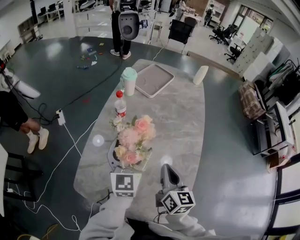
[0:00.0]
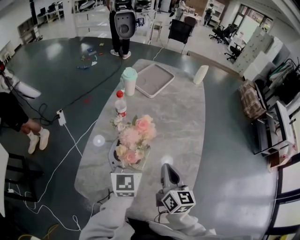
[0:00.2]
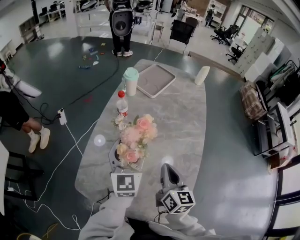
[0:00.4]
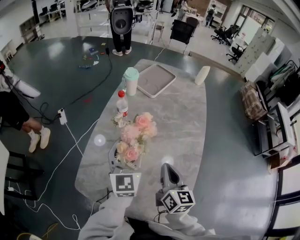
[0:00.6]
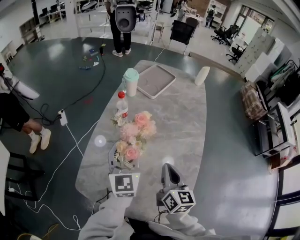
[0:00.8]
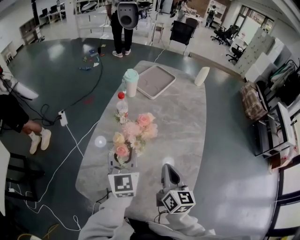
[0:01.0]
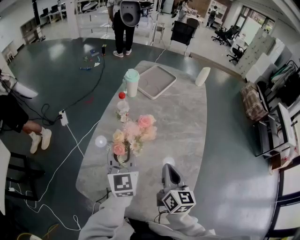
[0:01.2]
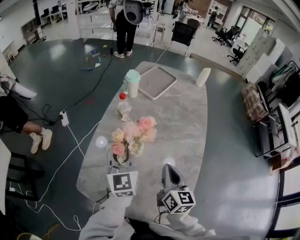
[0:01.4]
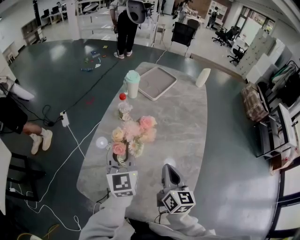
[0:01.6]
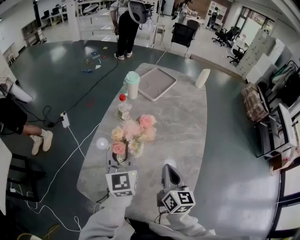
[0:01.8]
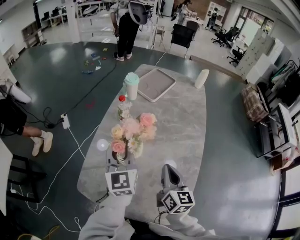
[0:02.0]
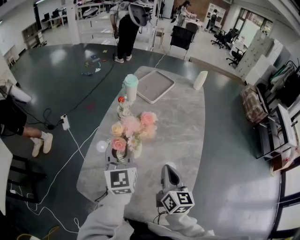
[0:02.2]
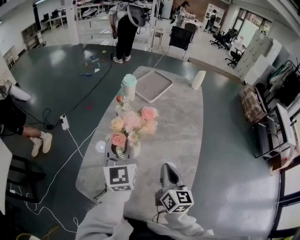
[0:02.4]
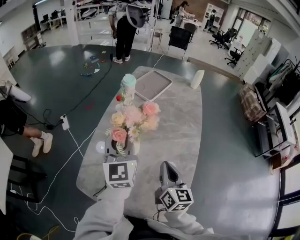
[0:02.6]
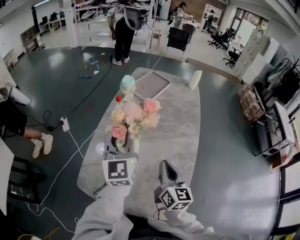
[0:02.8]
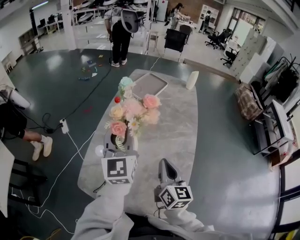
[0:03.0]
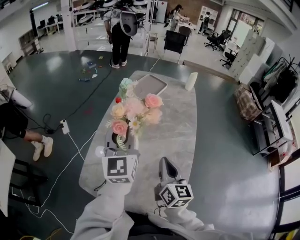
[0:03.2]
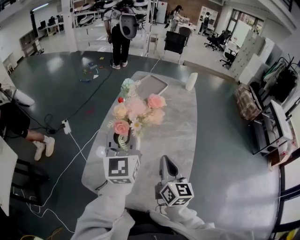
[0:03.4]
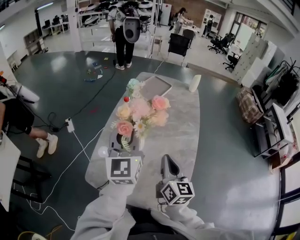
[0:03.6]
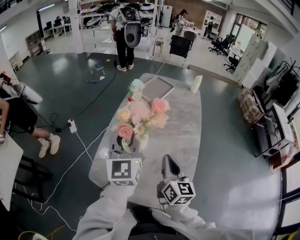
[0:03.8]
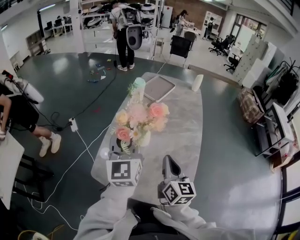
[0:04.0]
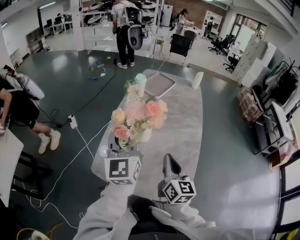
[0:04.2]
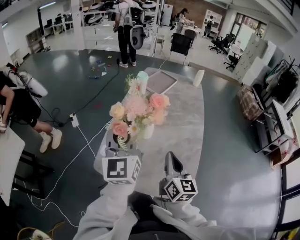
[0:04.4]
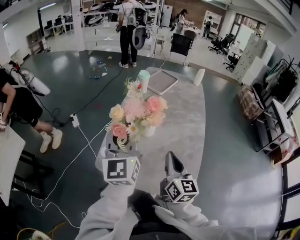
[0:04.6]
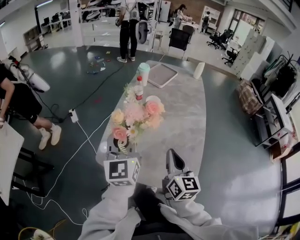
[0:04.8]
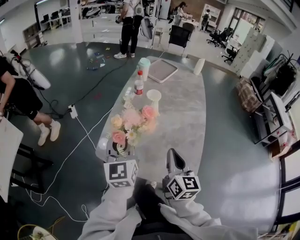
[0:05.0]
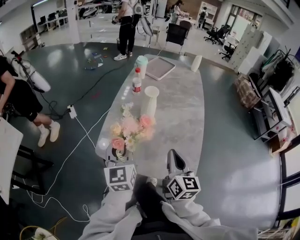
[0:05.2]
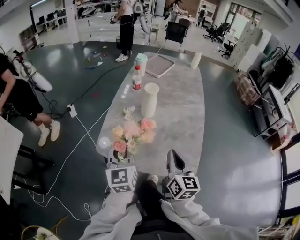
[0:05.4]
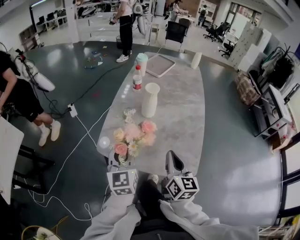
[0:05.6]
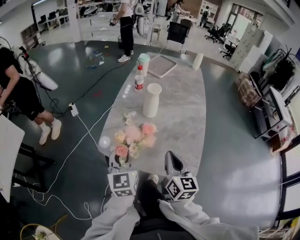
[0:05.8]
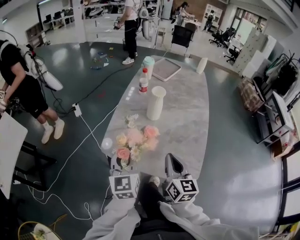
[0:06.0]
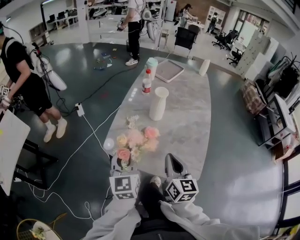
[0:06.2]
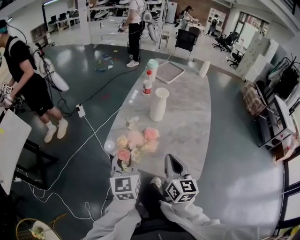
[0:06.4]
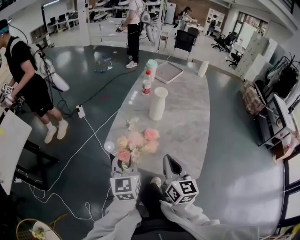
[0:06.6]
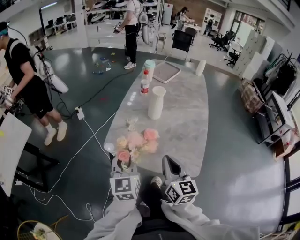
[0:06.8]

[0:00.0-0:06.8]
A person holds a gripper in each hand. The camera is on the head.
0:00.0 to 0:01.4: The left gripper closes up.
0:01.4 to 0:02.8: The left gripper moves upward, approximately 10 cm, while the right gripper changes place by some 5 cm.
0:02.8 to 0:04.0: Both grippers move backward, upward and to the left, about 15 cm.
0:04.0 to 0:05.4: The right gripper is displaced backward and downward by approximately 15 cm. The left gripper moves downward, backward and to the left, approximately 25 cm.
0:05.4 to 0:06.8: The right gripper shifts about 10 cm to the left and backward; the left gripper heads backward, covering roughly 5 cm.

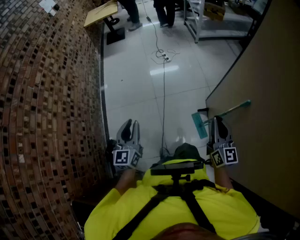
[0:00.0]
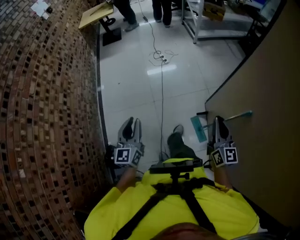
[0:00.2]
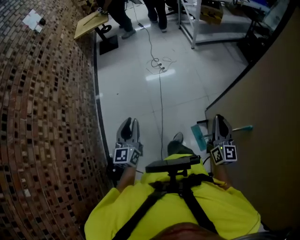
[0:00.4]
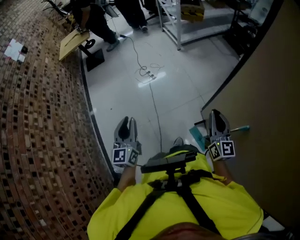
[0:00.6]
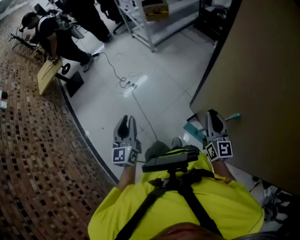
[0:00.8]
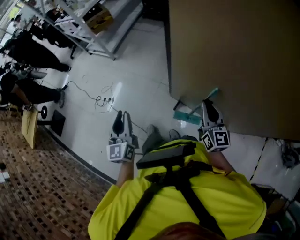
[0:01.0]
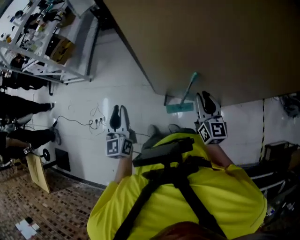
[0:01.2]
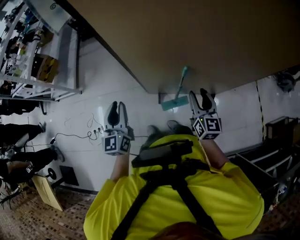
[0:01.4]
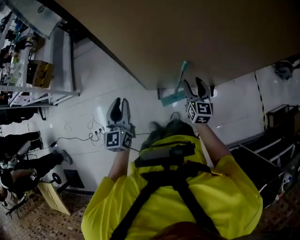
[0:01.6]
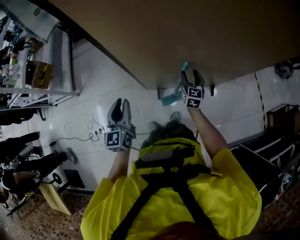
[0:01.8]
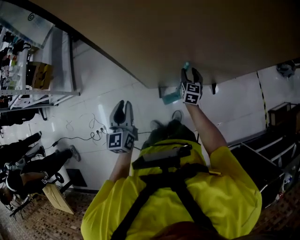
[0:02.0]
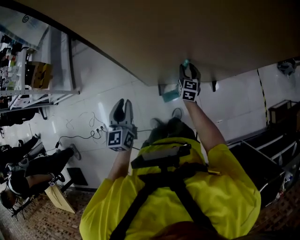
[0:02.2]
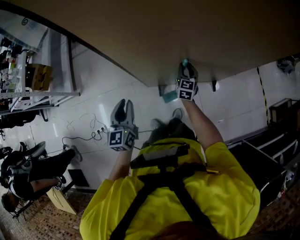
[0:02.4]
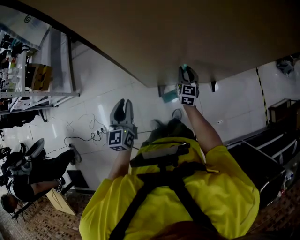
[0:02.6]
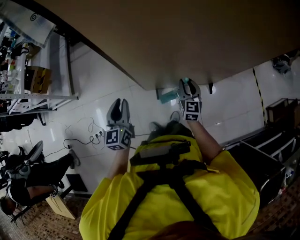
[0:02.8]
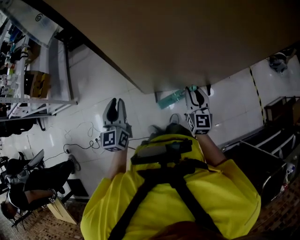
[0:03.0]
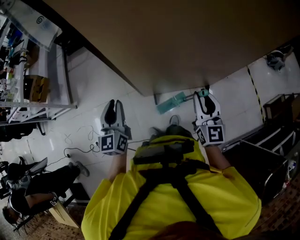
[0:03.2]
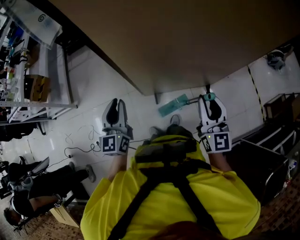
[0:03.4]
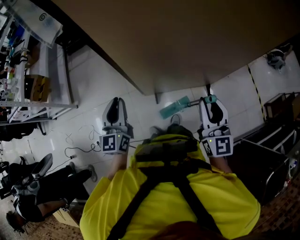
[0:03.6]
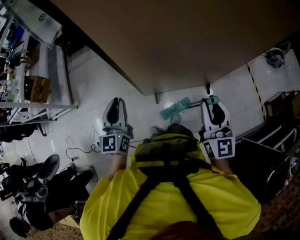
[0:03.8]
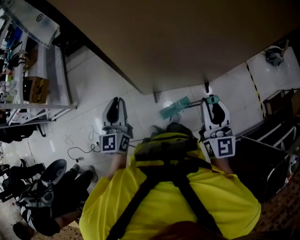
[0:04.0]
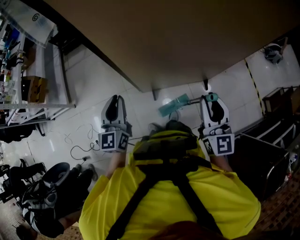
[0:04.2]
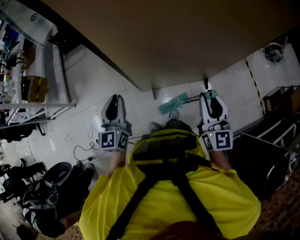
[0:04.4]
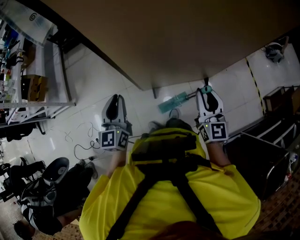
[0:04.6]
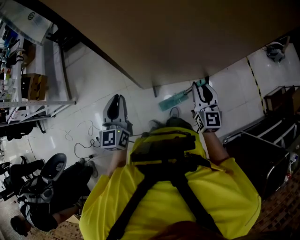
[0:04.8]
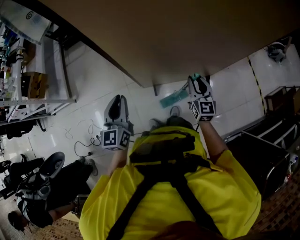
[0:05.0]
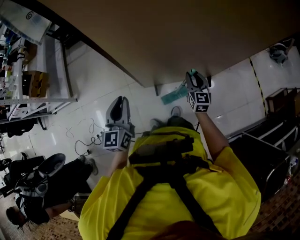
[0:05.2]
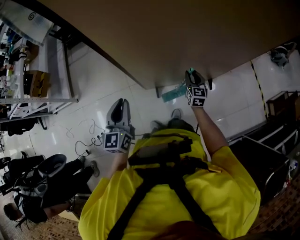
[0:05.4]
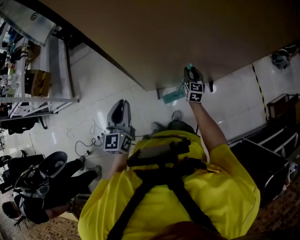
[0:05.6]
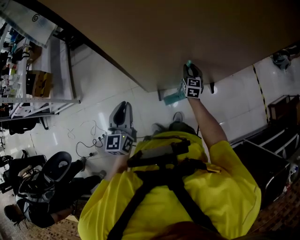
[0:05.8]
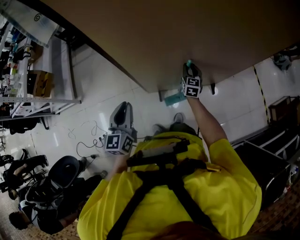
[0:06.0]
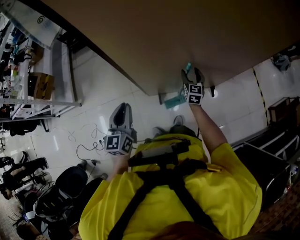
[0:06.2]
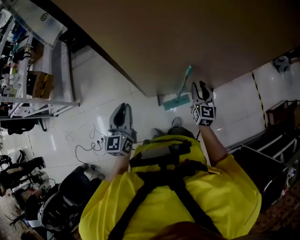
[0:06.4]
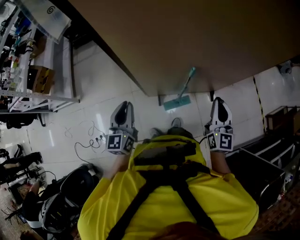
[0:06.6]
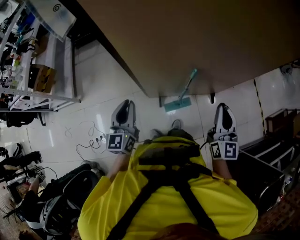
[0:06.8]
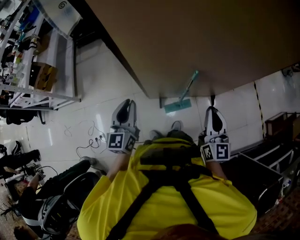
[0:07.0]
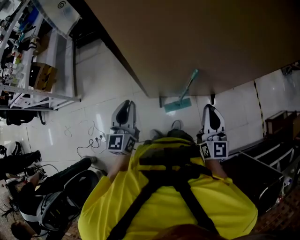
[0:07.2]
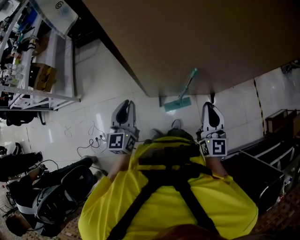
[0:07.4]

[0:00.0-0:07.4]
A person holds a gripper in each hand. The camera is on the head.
0:00.0 to 0:01.4: The right gripper ends up some 30 cm from where it was, turns by roughly 80 degrees, and opens its fingers. The left gripper shifts by about 70 cm, and changes its angle by approximately 80 degrees.
0:01.4 to 0:03.0: The right gripper moves approximately 15 cm downward and comes back.
0:03.0 to 0:04.4: The right gripper moves upward and backward, approximately 15 cm.
0:04.4 to 0:06.0: The right gripper moves downward and forward, some 35 cm.
0:06.0 to 0:07.4: The right gripper heads upward and backward, covering roughly 30 cm, turns by some 20 degrees, and closes up.

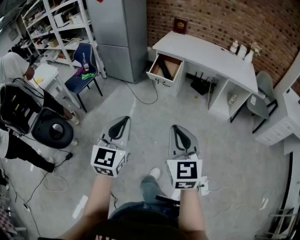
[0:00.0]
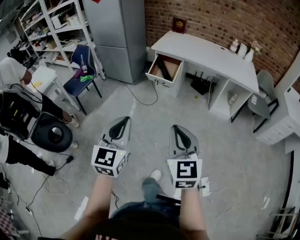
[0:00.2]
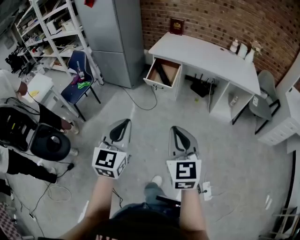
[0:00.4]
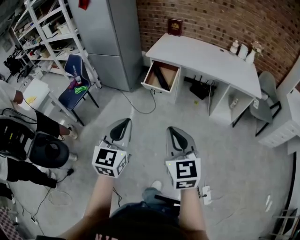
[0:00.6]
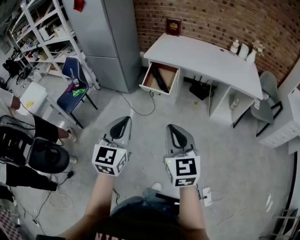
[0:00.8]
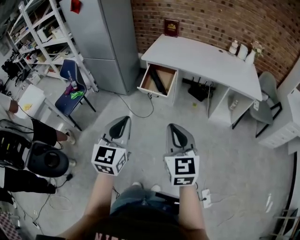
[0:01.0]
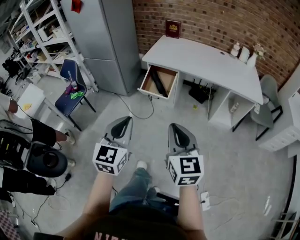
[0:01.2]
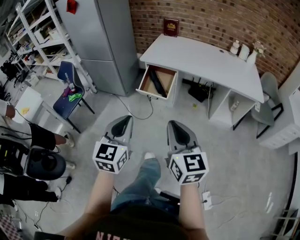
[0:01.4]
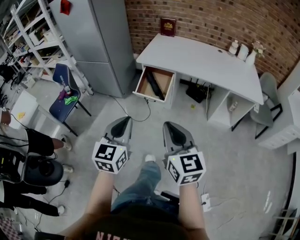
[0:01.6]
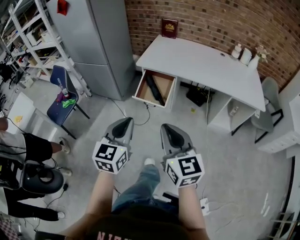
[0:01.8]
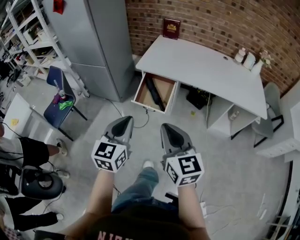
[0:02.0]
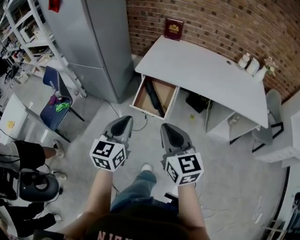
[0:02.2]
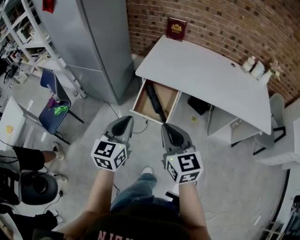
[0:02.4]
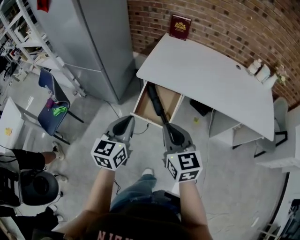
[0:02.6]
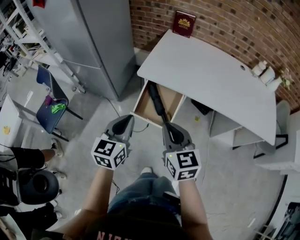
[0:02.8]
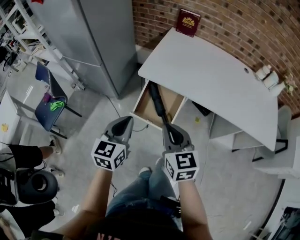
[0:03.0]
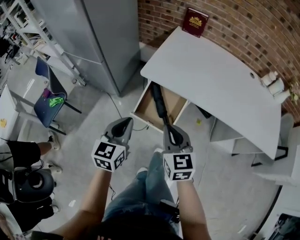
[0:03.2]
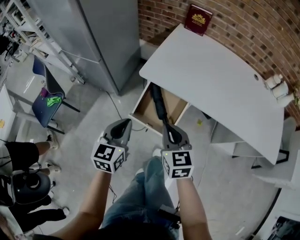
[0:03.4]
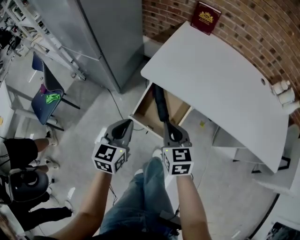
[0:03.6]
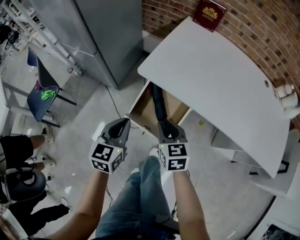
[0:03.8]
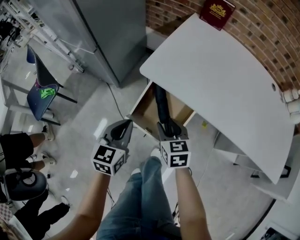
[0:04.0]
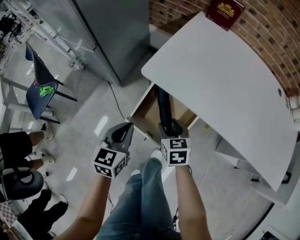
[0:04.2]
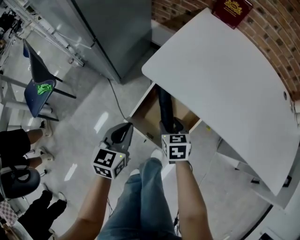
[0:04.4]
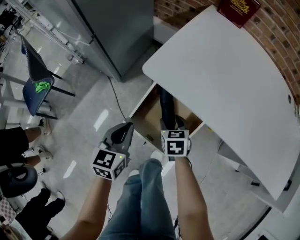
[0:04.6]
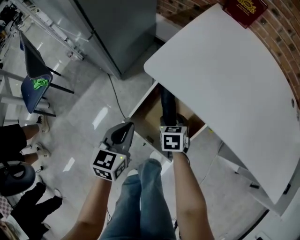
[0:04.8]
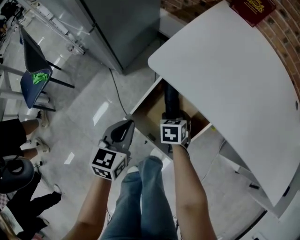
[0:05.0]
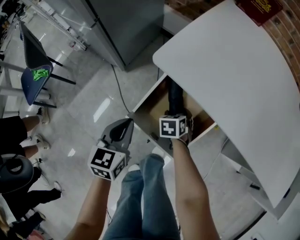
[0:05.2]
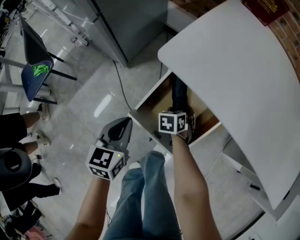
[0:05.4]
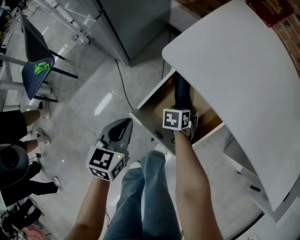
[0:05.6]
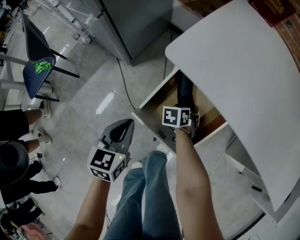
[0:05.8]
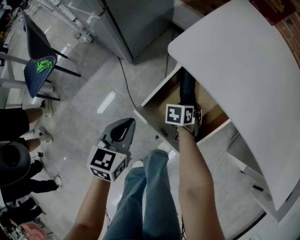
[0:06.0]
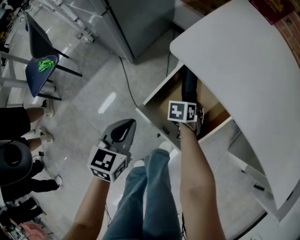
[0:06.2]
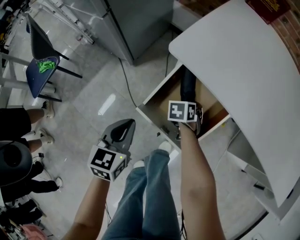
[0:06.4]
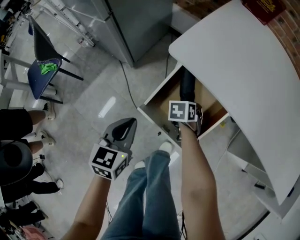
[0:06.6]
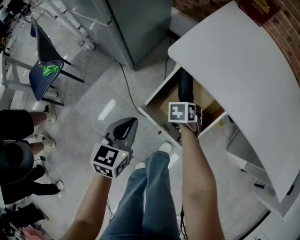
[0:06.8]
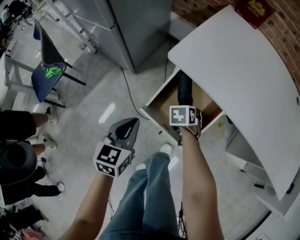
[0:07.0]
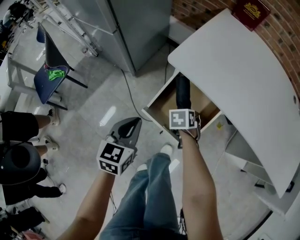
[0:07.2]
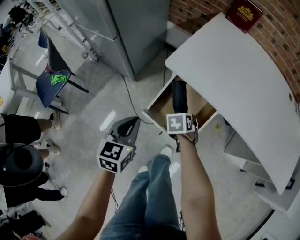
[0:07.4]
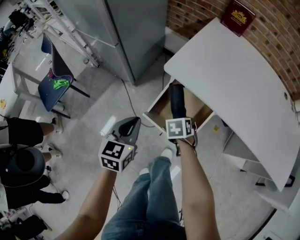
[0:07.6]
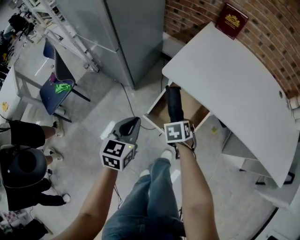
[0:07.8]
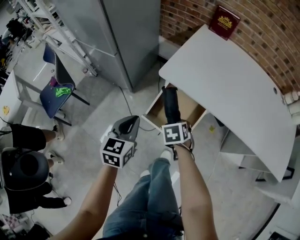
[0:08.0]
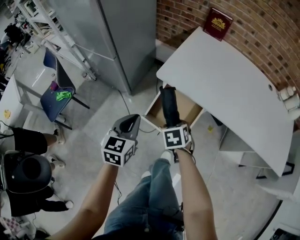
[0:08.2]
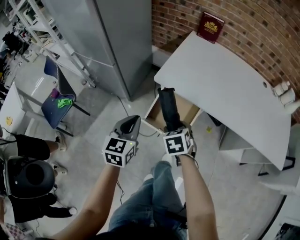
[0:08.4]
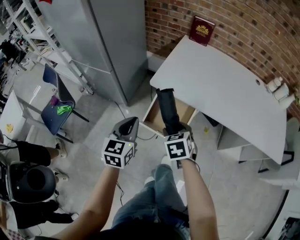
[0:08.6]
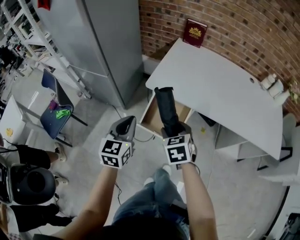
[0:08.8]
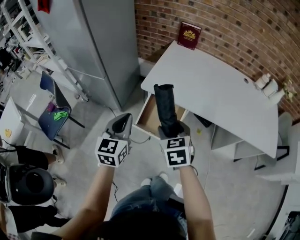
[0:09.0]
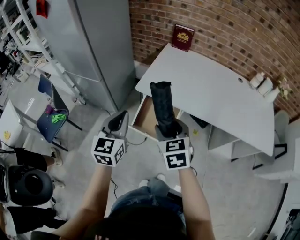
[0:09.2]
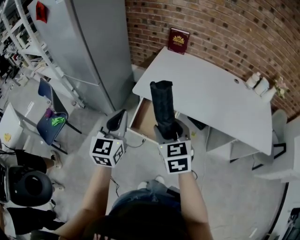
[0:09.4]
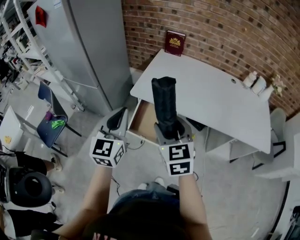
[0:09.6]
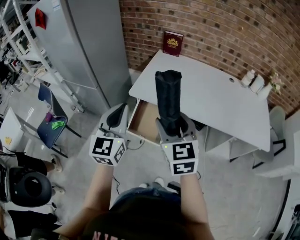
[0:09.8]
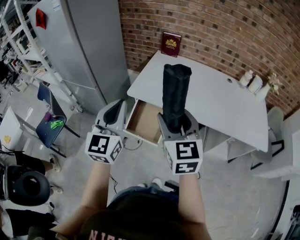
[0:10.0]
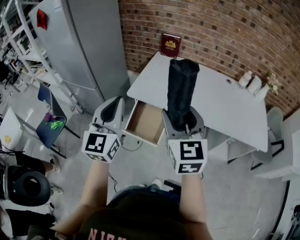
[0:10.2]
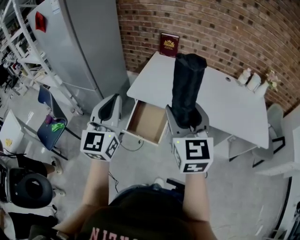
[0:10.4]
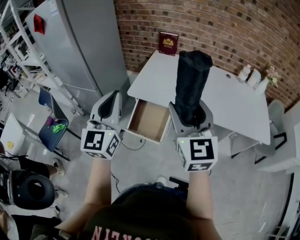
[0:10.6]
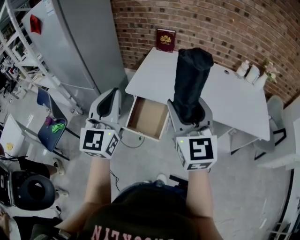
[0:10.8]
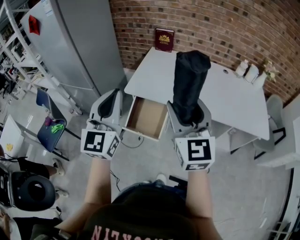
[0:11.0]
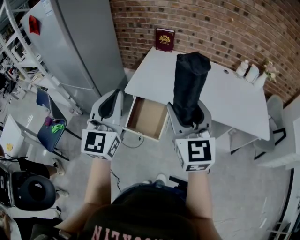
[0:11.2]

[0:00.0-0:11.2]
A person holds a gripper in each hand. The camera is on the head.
0:00.0 to 0:01.6: The grippers both shift forward by some 35 cm.
0:01.6 to 0:03.2: The pair of grippers is taken forward, roughly 40 cm.
0:03.2 to 0:04.8: The left gripper travels downward and forward by about 25 cm. The right gripper heads downward and forward, covering roughly 40 cm, tips its fingers downward by some 40 degrees, and opens up.
0:04.8 to 0:06.4: The right gripper goes about 5 cm downward, and swivels some 20 degrees, while the left gripper is displaced backward by about 5 cm.
0:06.4 to 0:08.0: The left gripper heads upward, covering approximately 15 cm. Meanwhile the right gripper moves upward and backward, roughly 25 cm.
0:08.0 to 0:09.6: The grippers both shift upward by about 30 cm. The left gripper turns by approximately 30 degrees. The right gripper angles its fingers upward, by some 50 degrees.
0:09.6 to 0:11.2: The left gripper is displaced upward by approximately 10 cm. The right gripper moves upward and to the right, about 15 cm, and swivels some 20 degrees.
